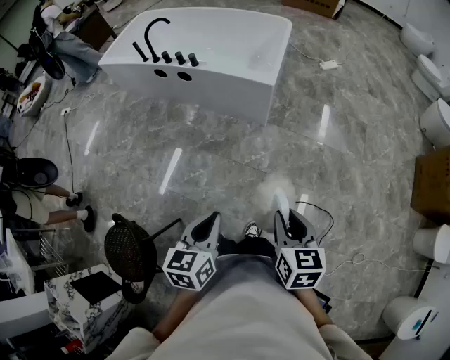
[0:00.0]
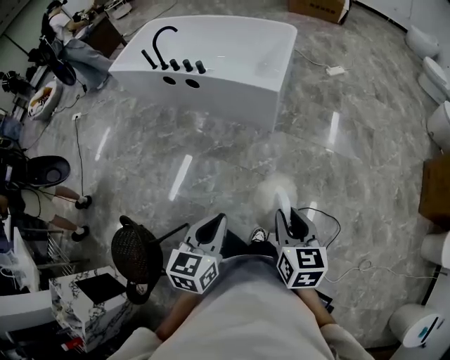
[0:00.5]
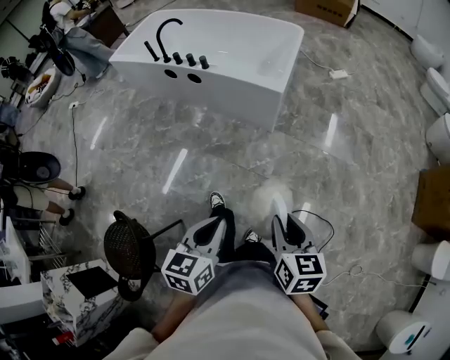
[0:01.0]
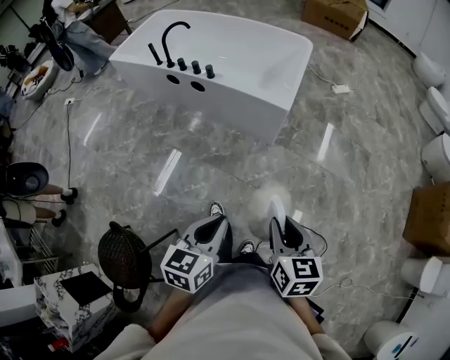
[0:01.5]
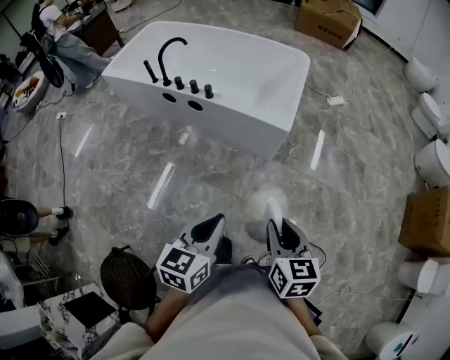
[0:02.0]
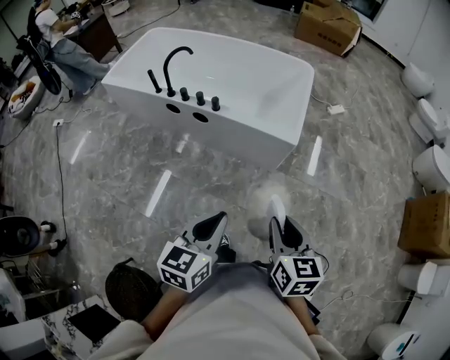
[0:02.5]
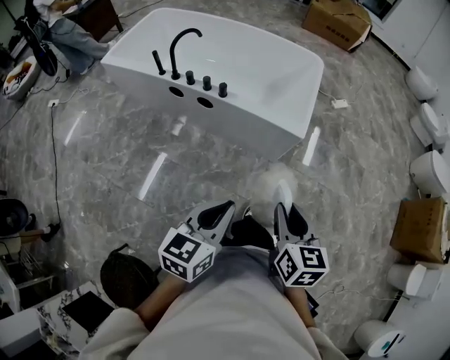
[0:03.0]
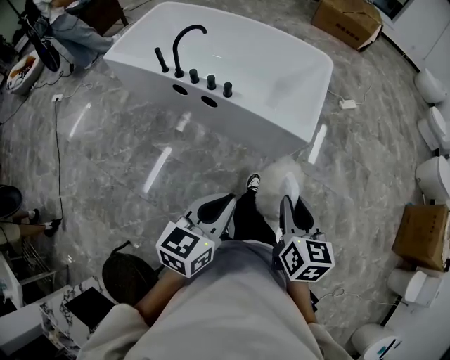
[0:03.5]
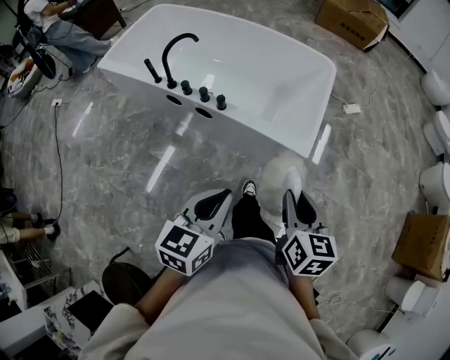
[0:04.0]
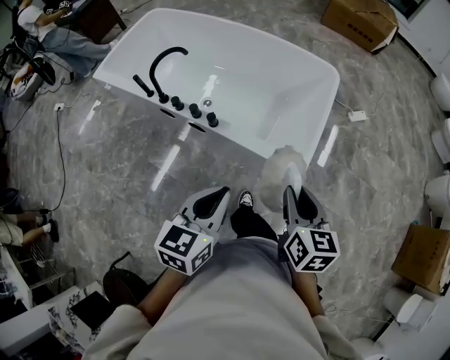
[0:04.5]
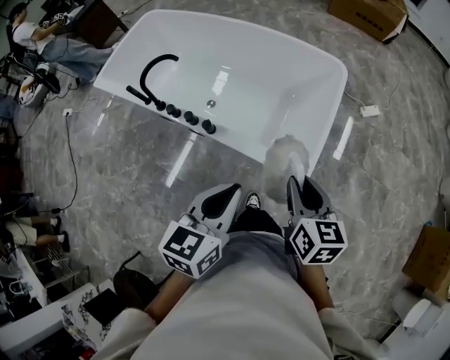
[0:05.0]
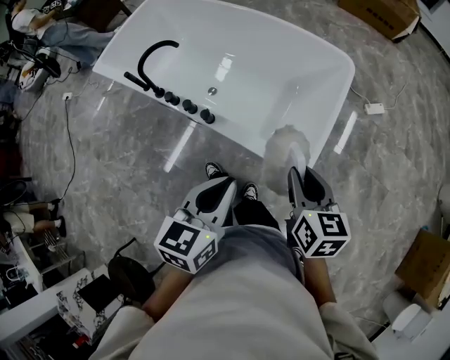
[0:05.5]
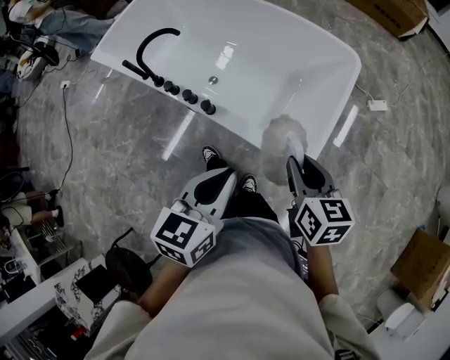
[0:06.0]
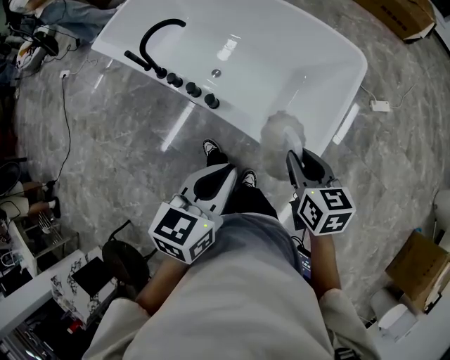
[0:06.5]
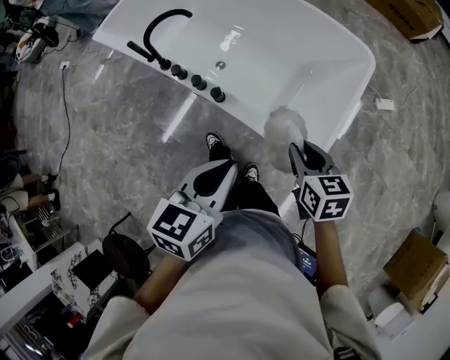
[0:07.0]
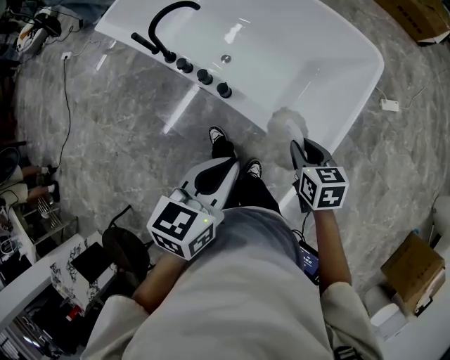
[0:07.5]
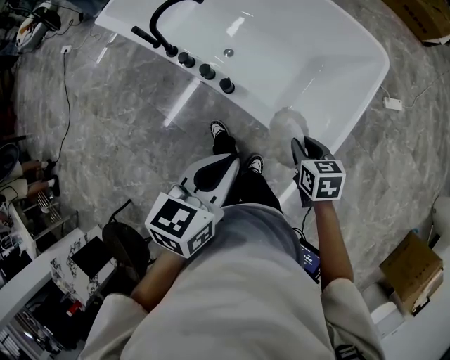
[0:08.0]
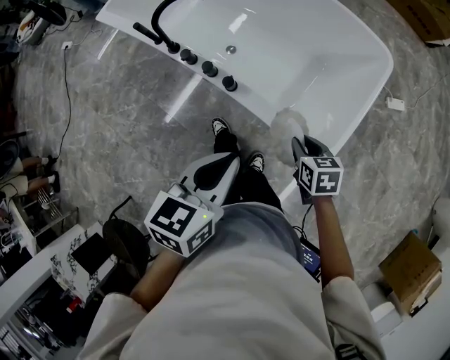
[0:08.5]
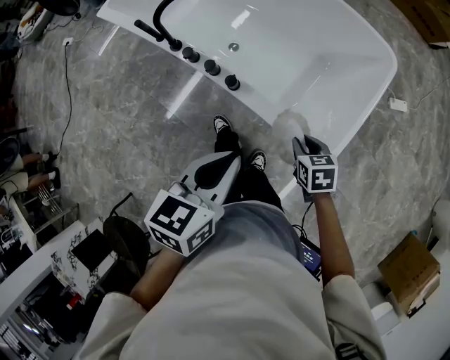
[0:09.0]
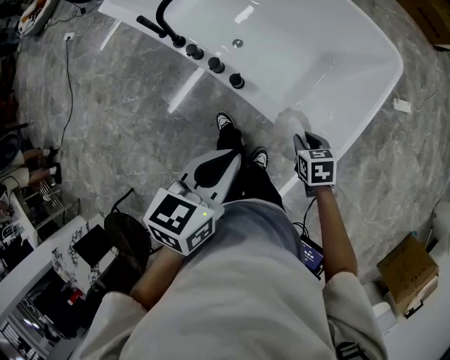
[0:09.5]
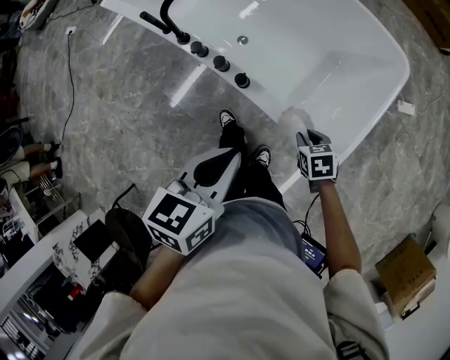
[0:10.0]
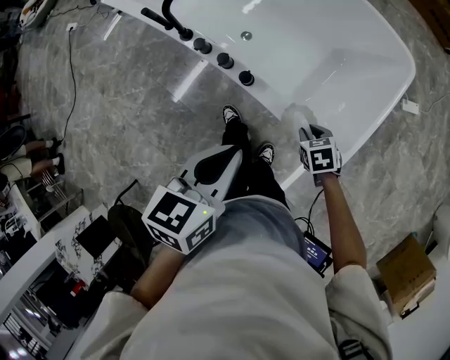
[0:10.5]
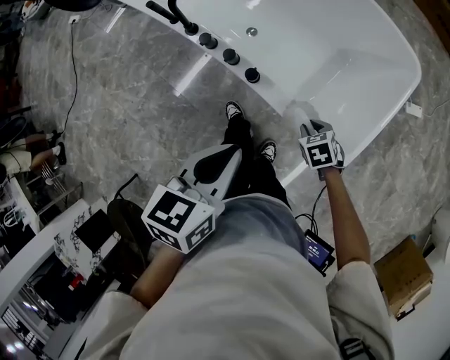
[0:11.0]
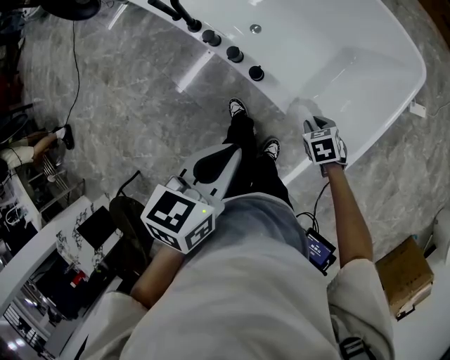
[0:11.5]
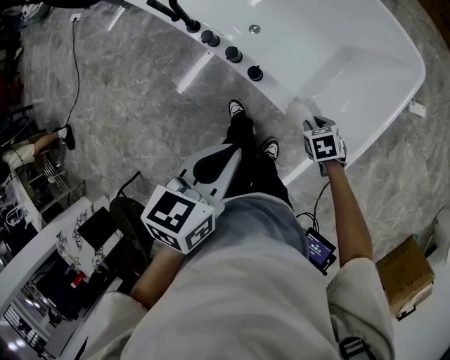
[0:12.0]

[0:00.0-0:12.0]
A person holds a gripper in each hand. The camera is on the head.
0:00.0 to 0:02.0: The two grippers go approximately 20 cm forward and to the left.
0:02.0 to 0:04.0: The right gripper travels forward by some 25 cm. Meanwhile the left gripper moves forward and to the left, approximately 25 cm.
0:04.0 to 0:06.0: Both grippers travel together forward, some 25 cm.
0:06.0 to 0:08.0: The left gripper is displaced to the left by some 5 cm; the right gripper shifts some 15 cm downward, and swivels roughly 20 degrees.
0:08.0 to 0:10.0: The left gripper ends up about 5 cm from where it was. Meanwhile the right gripper heads downward, covering some 10 cm.
0:10.0 to 0:12.0: The right gripper moves downward, about 5 cm.

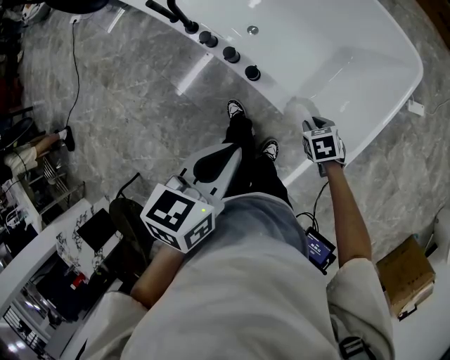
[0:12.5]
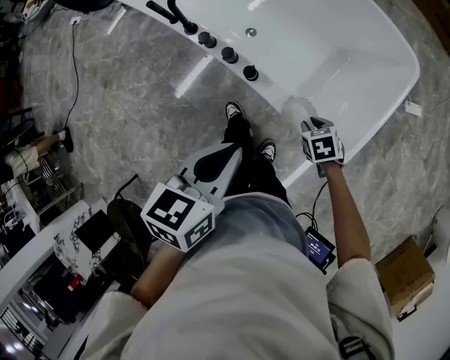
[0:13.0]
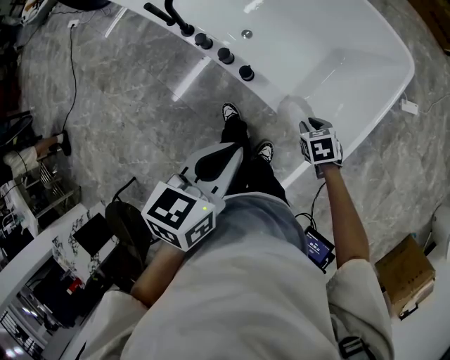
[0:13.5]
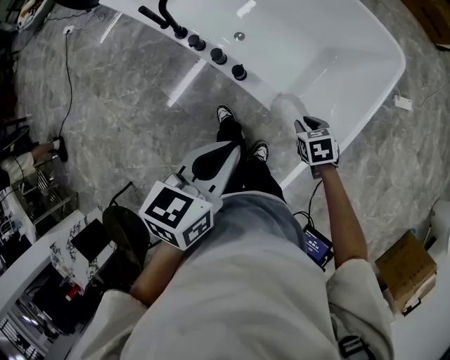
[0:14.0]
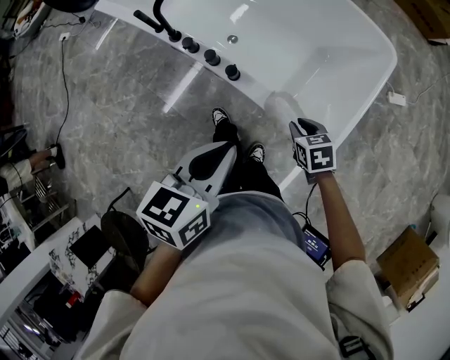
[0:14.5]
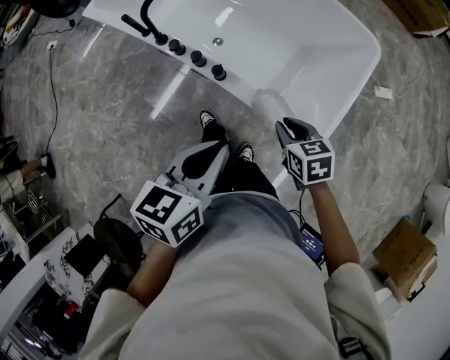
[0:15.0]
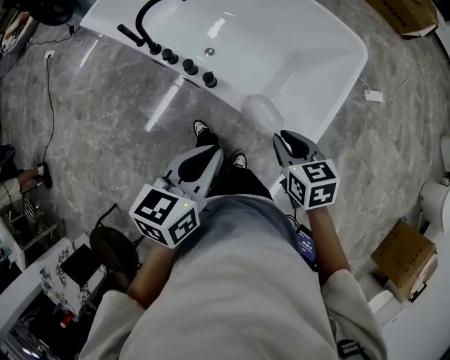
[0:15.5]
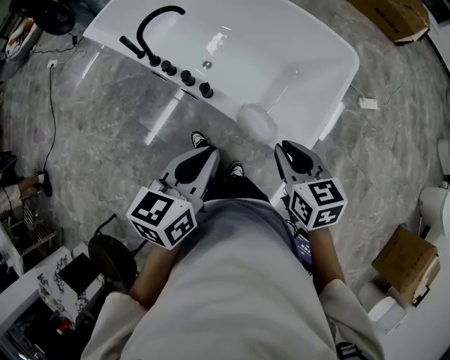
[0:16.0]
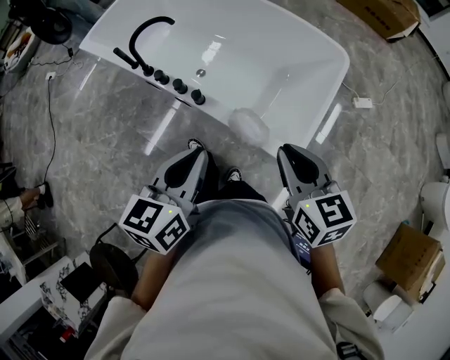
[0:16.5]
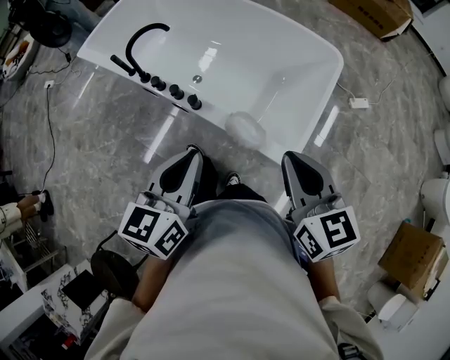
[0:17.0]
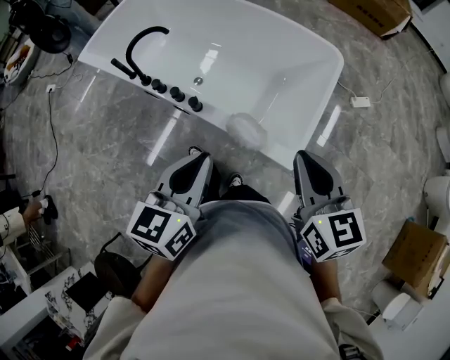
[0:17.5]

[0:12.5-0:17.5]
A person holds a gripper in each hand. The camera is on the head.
0:12.5 to 0:15.0: The right gripper is displaced upward by roughly 15 cm, and swivels about 20 degrees. Meanwhile the left gripper changes place by approximately 5 cm.
0:15.0 to 0:17.5: The left gripper heads upward, covering about 5 cm; the right gripper shifts roughly 25 cm upward, and swivels about 30 degrees.

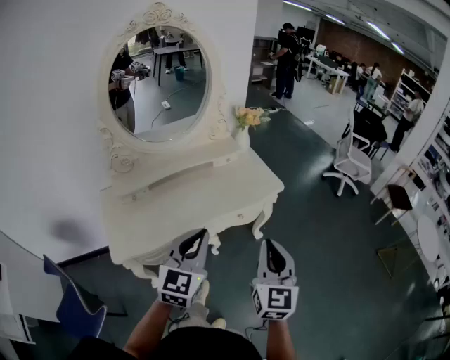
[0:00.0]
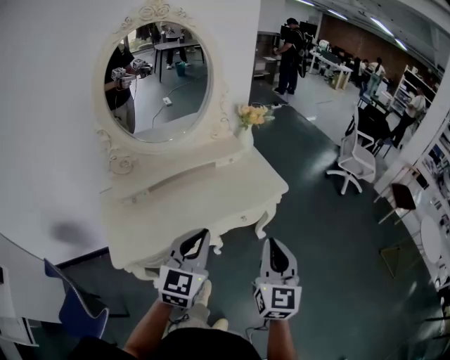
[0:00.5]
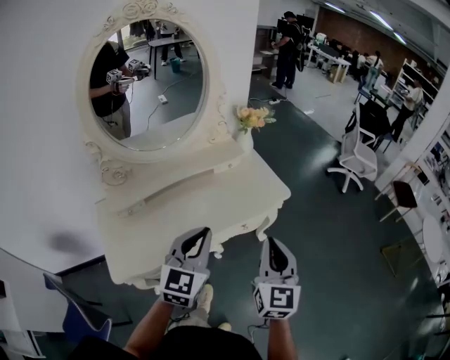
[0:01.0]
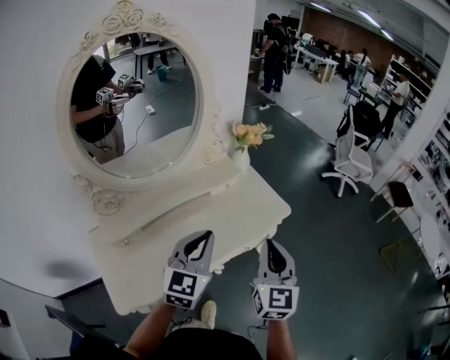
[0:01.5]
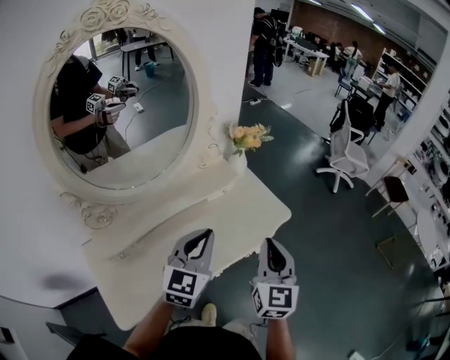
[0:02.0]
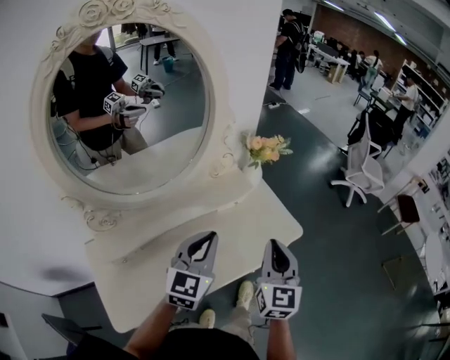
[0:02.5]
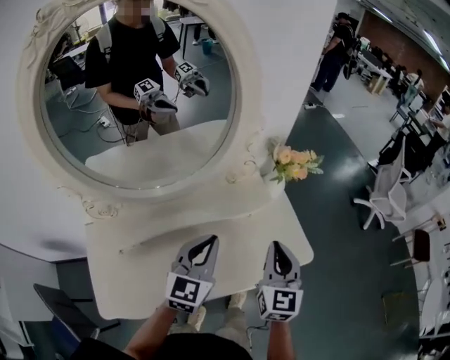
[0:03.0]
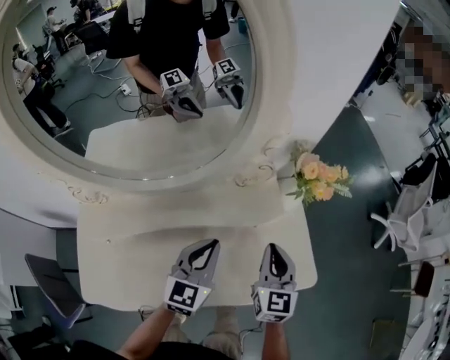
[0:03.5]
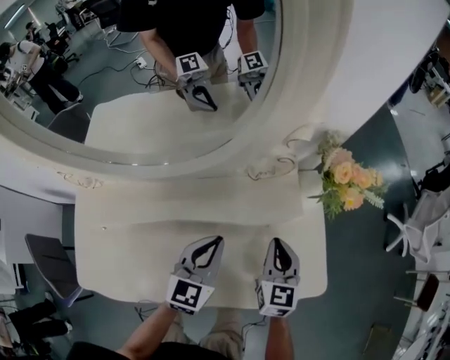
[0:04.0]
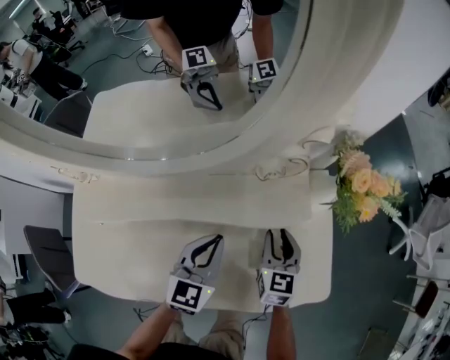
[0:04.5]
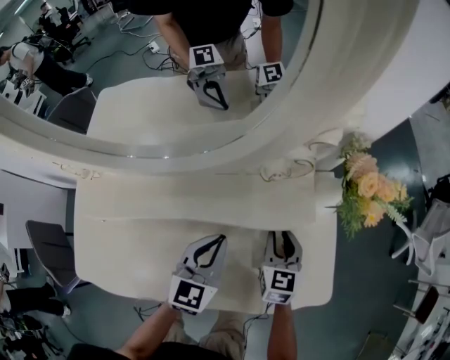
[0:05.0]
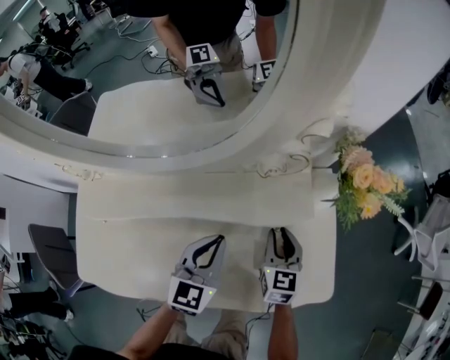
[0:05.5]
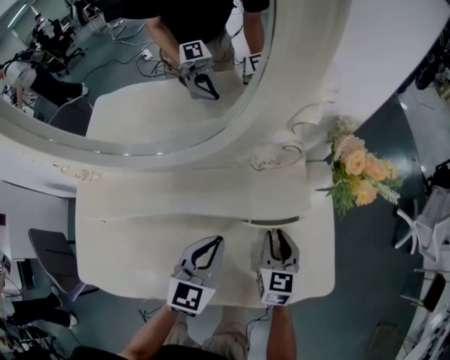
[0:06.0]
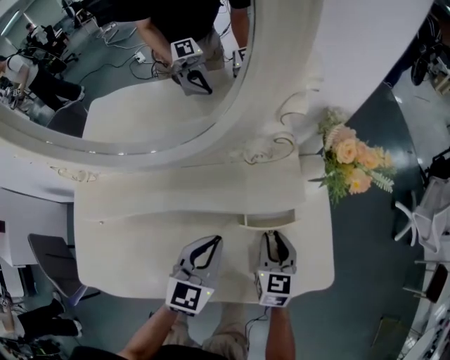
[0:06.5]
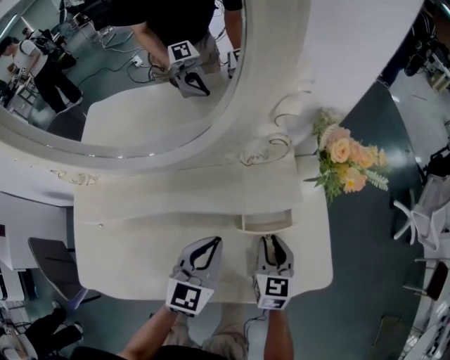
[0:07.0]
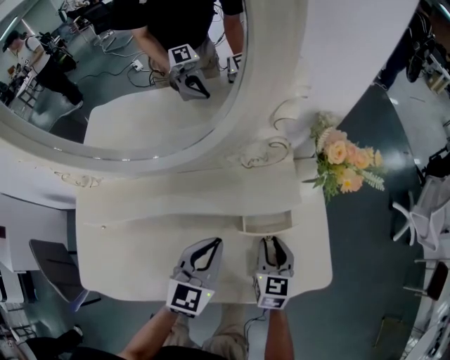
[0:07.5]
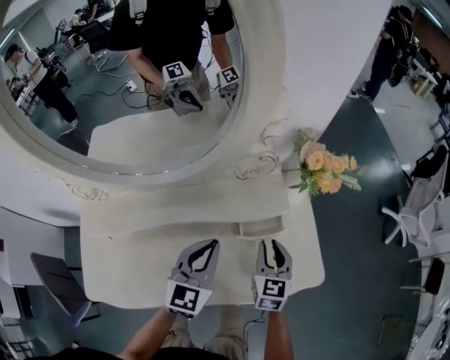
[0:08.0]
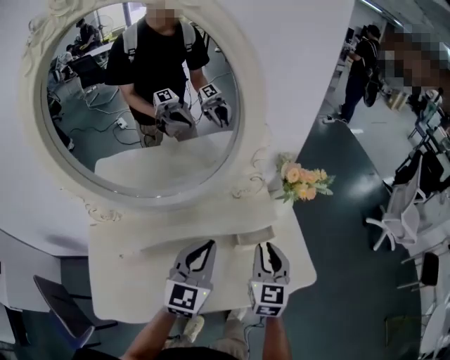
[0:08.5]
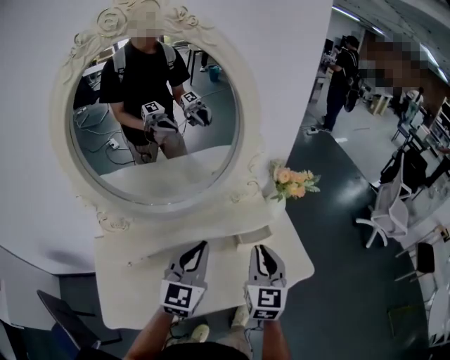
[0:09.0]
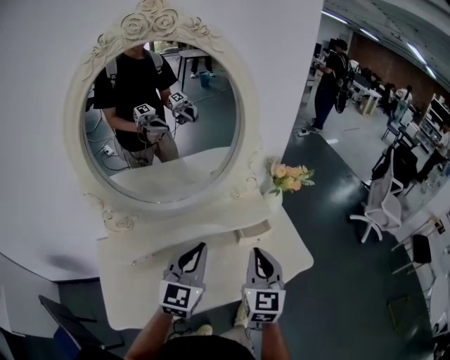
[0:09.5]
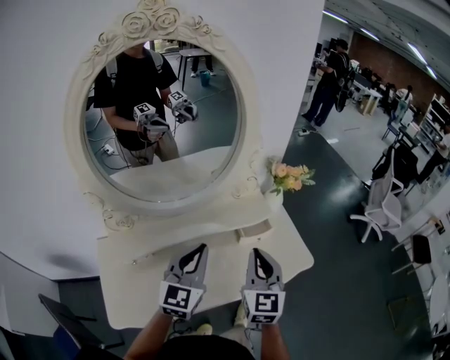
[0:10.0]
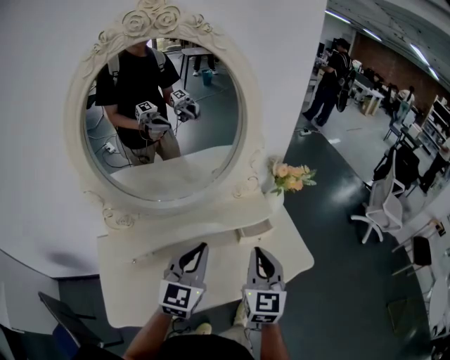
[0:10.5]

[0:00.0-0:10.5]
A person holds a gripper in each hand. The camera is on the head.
0:00.0 to 0:02.0: Both grippers travel together forward, about 25 cm.
0:02.0 to 0:04.0: The left gripper moves downward, approximately 20 cm, and changes its angle by some 40 degrees, while the right gripper changes place by about 40 cm, and swivels about 40 degrees.
0:04.0 to 0:06.5: The right gripper travels downward by roughly 5 cm, and opens its fingers.
0:06.5 to 0:08.5: The grippers both shift upward by approximately 20 cm.
0:08.5 to 0:10.5: The two grippers go roughly 15 cm backward, upward and to the left.
